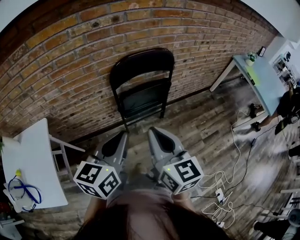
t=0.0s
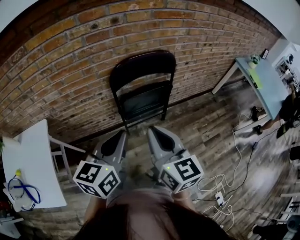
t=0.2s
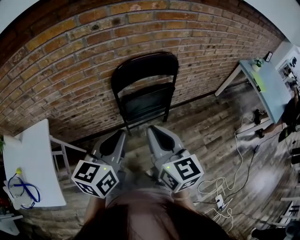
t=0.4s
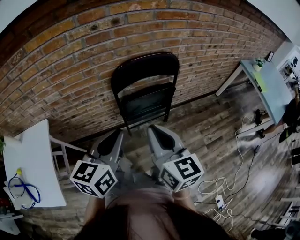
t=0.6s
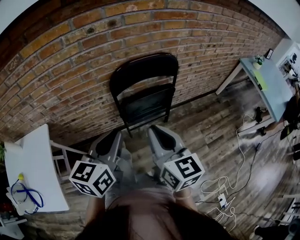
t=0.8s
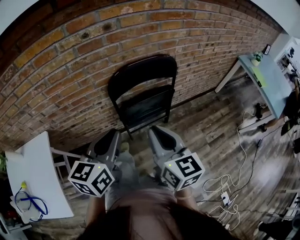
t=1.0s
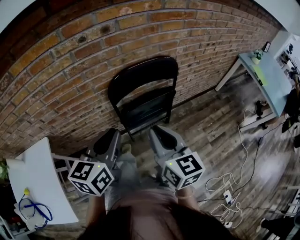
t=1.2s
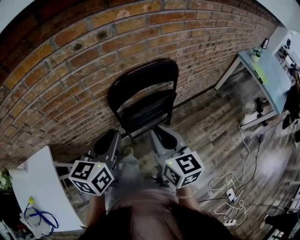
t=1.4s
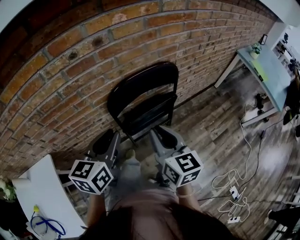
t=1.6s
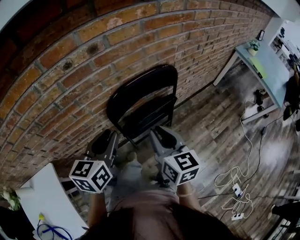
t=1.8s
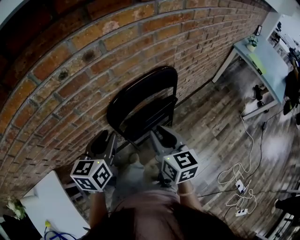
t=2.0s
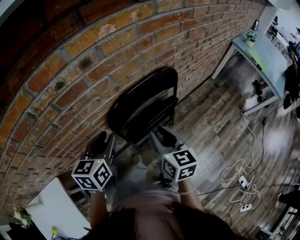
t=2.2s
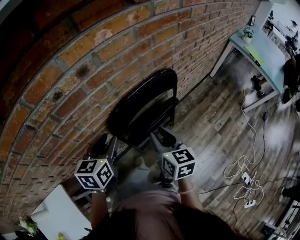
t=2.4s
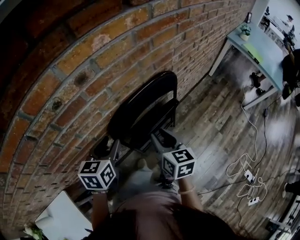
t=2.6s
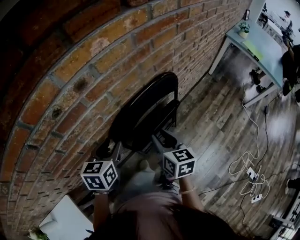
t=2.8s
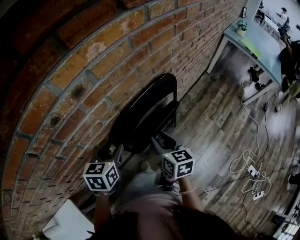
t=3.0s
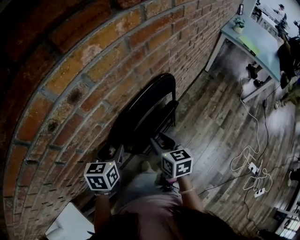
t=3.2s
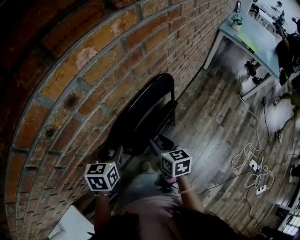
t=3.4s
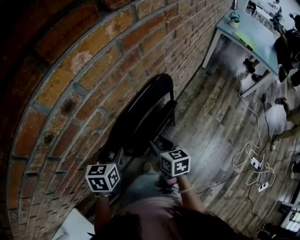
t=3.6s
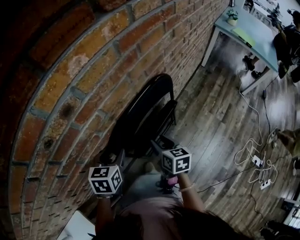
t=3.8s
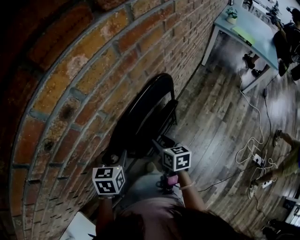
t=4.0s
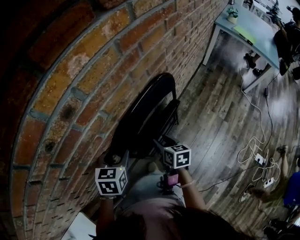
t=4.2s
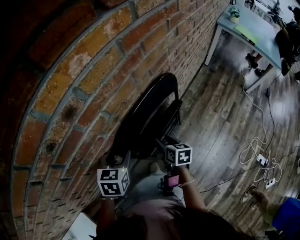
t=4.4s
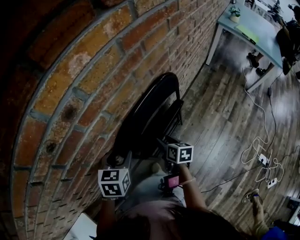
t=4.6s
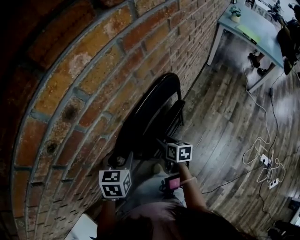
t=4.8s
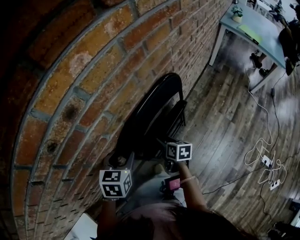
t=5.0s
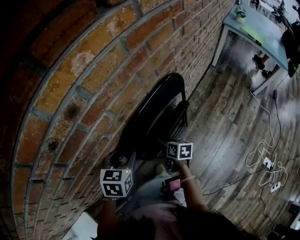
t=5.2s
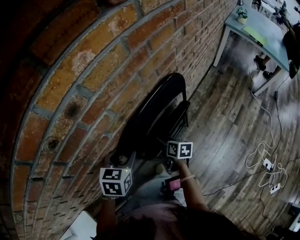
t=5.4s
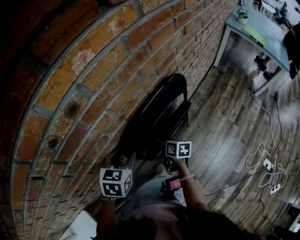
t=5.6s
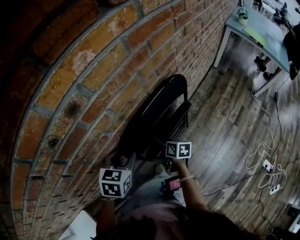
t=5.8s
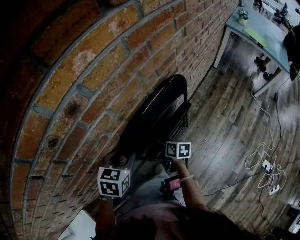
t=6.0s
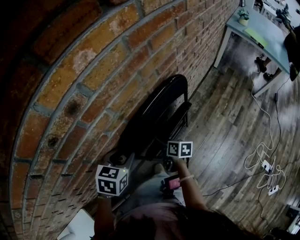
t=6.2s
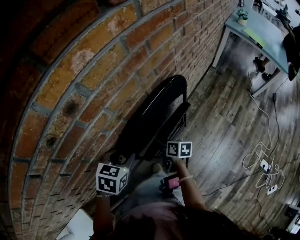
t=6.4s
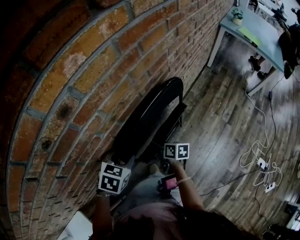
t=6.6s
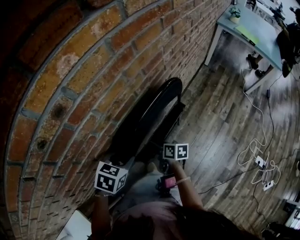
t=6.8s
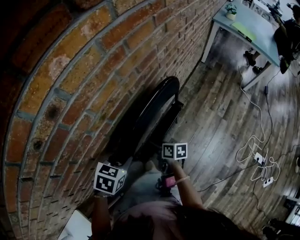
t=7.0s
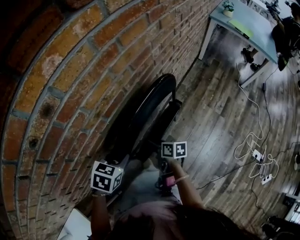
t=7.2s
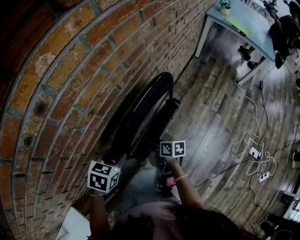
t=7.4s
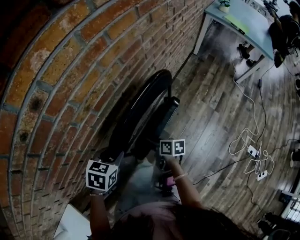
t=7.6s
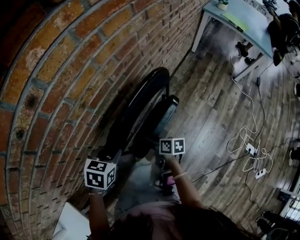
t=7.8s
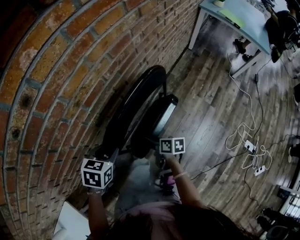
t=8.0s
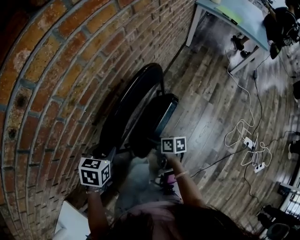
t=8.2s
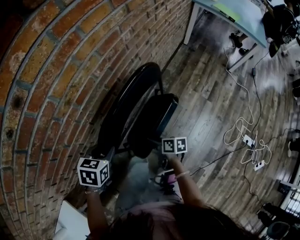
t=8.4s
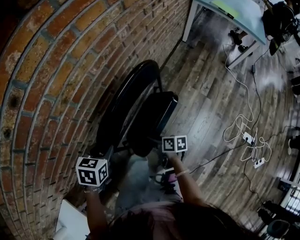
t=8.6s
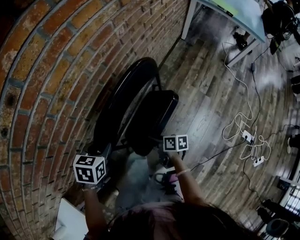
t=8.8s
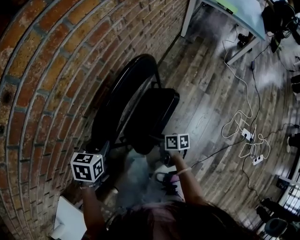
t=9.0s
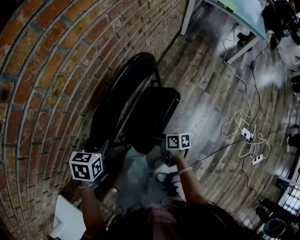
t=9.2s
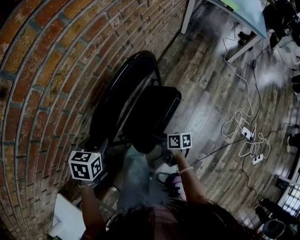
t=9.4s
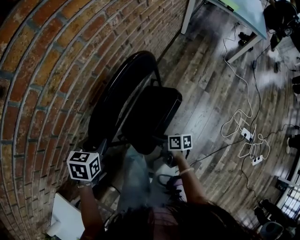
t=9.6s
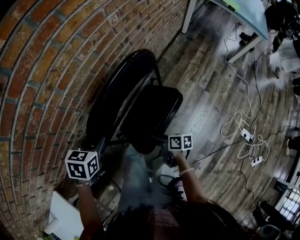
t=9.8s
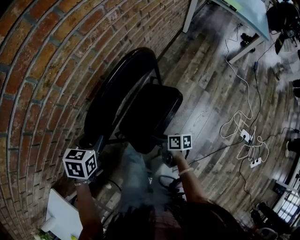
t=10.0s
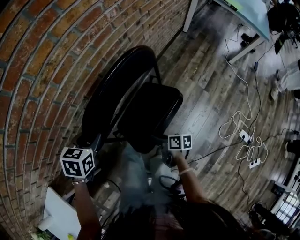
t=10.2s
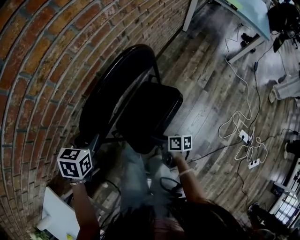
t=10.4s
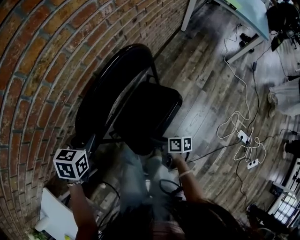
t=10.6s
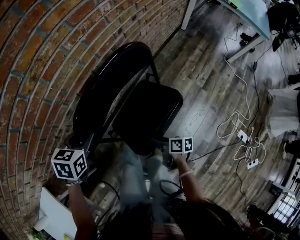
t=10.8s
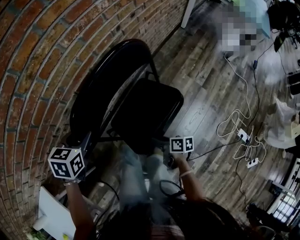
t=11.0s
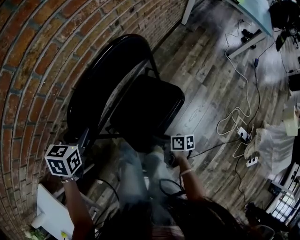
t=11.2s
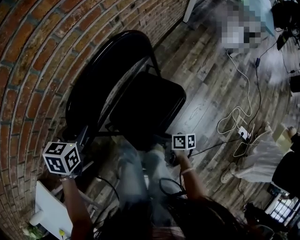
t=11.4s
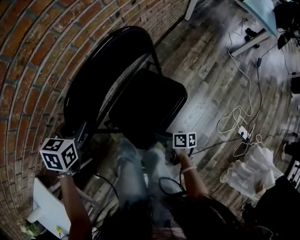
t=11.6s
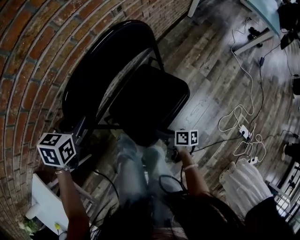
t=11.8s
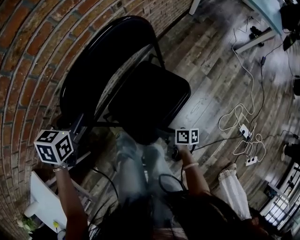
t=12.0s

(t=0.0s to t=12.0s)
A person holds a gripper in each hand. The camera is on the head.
t=0.0s - t=1.6s: The grippers both shift forward by approximately 20 cm.
t=1.6s - t=3.0s: The two grippers go approximately 15 cm forward and downward. The left gripper turns by about 20 degrees, and opens, while the right gripper turns by about 20 degrees, and opens.
t=3.0s - t=4.4s: The right gripper moves downward, approximately 15 cm.
t=4.4s - t=6.0s: The right gripper moves roughly 5 cm.
t=6.0s - t=7.6s: The left gripper moves to the right and backward, roughly 10 cm. The right gripper moves backward and to the right, some 10 cm.
t=7.6s - t=9.0s: The right gripper travels backward and to the right by some 10 cm.
t=9.0s - t=10.4s: The right gripper travels backward by some 5 cm.
t=10.4s - t=12.0s: The right gripper goes roughly 10 cm downward and backward.

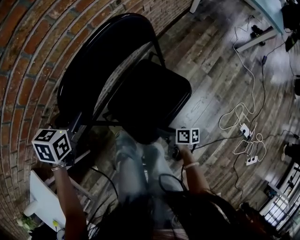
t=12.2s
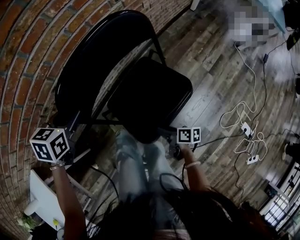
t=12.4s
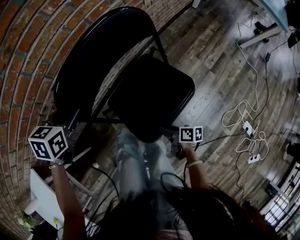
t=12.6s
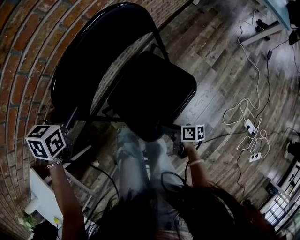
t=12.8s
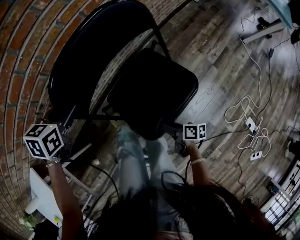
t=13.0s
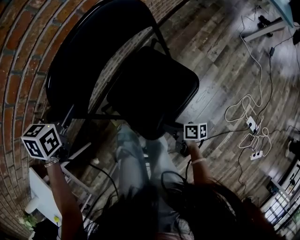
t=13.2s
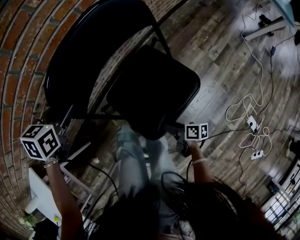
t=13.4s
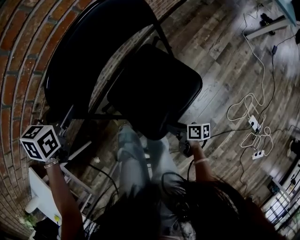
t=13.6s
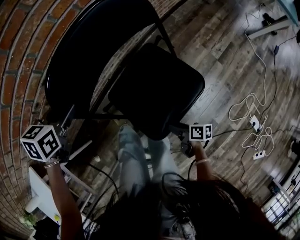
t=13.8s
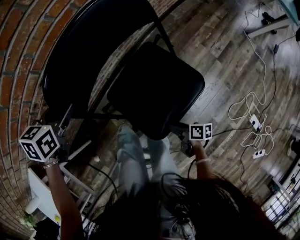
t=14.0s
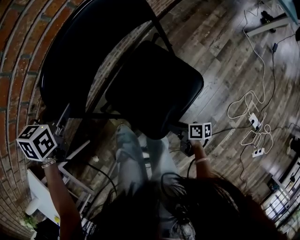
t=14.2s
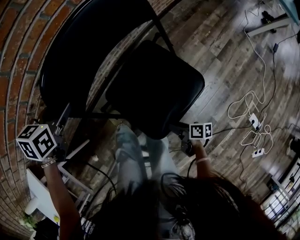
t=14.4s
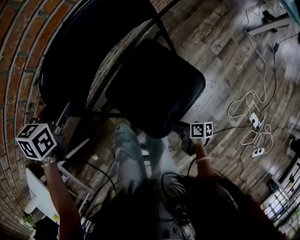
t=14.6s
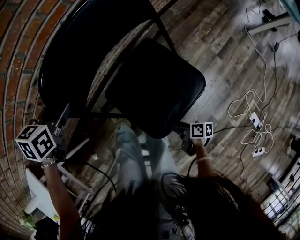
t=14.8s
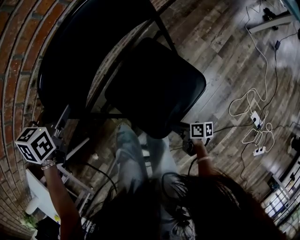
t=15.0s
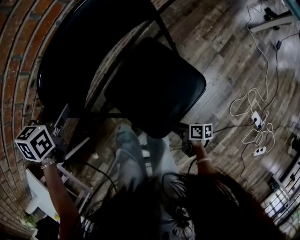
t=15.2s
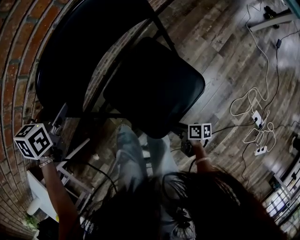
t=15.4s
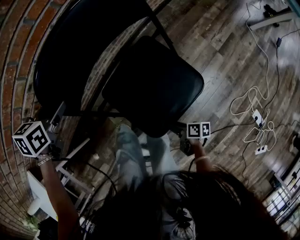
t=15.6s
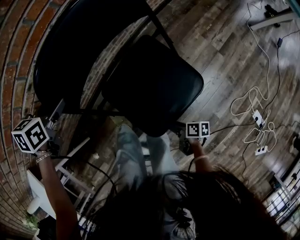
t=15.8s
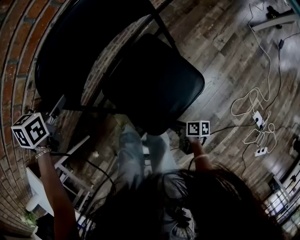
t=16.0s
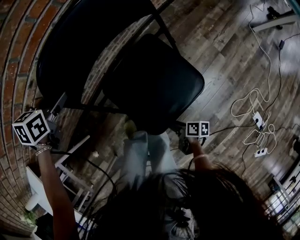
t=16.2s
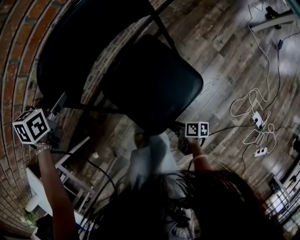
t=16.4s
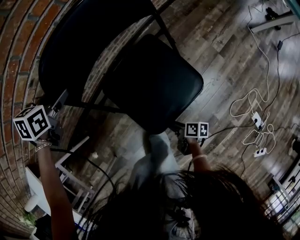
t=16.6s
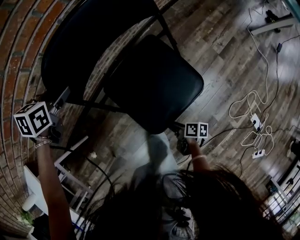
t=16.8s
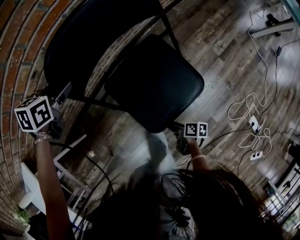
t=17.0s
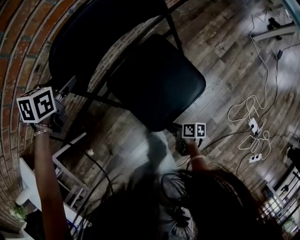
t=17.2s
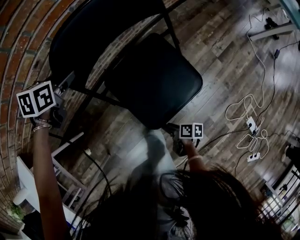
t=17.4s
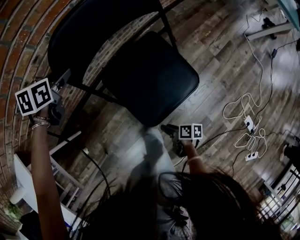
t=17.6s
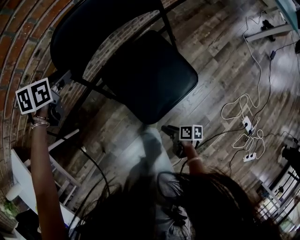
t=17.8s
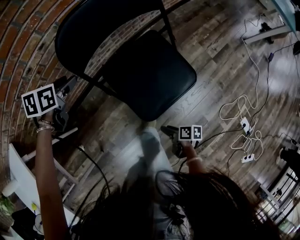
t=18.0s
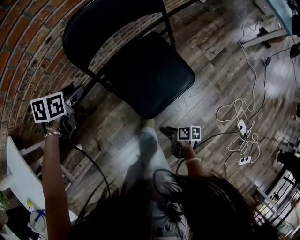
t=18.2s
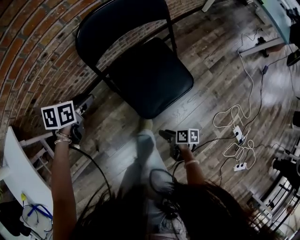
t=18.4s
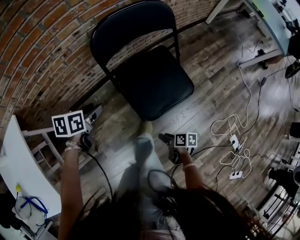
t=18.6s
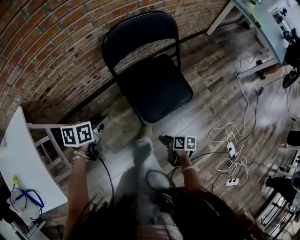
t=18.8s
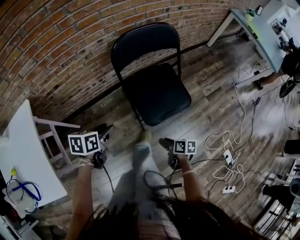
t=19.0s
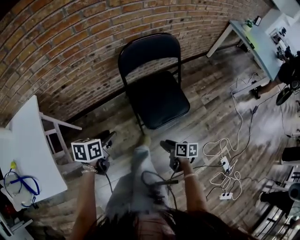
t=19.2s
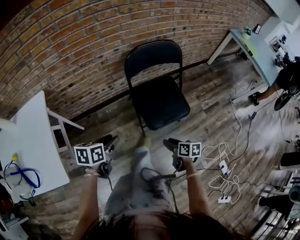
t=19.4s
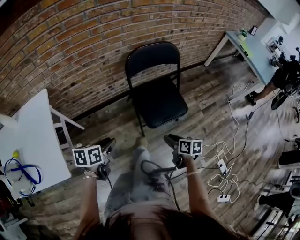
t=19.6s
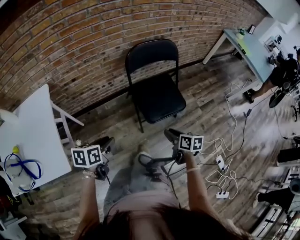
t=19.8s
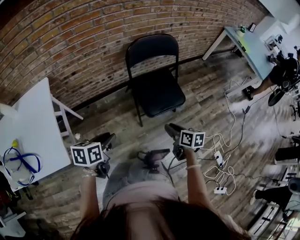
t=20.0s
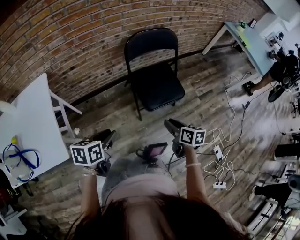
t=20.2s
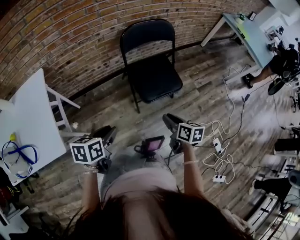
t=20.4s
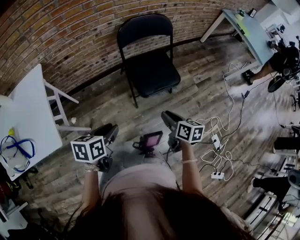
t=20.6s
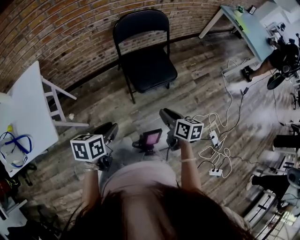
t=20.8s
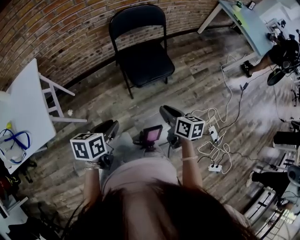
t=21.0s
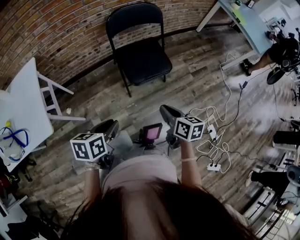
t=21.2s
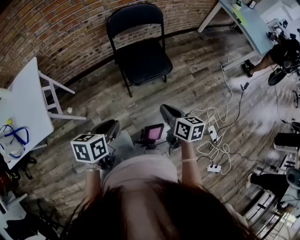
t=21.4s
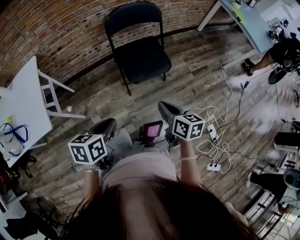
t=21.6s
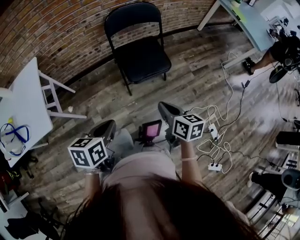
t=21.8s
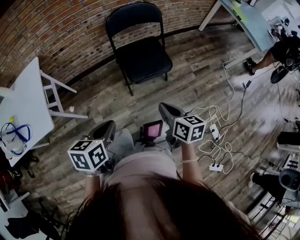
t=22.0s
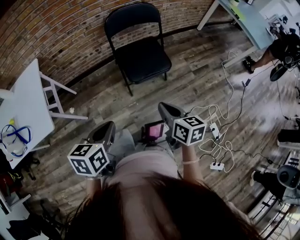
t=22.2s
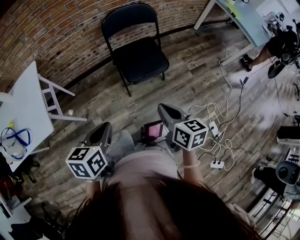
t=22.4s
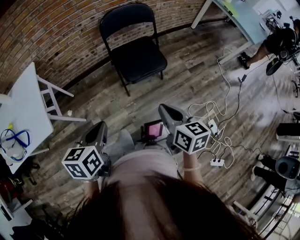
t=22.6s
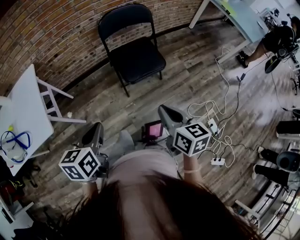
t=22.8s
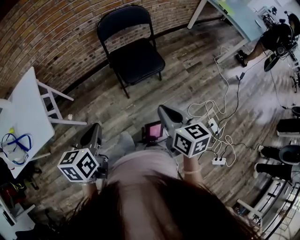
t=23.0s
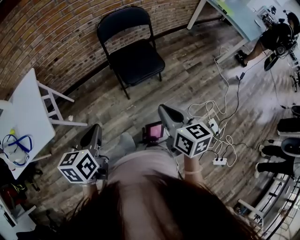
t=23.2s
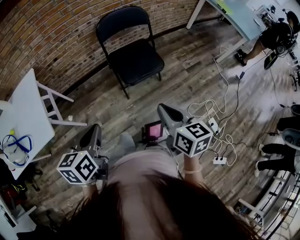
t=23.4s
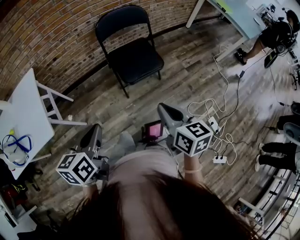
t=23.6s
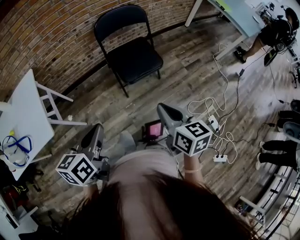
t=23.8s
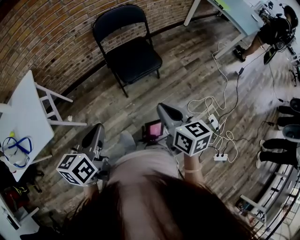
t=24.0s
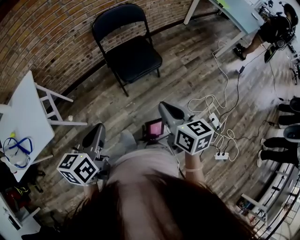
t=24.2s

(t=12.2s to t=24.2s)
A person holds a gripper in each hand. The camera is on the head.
t=12.2s - t=13.8s: The right gripper heads downward, covering some 5 cm.
t=13.8s - t=15.2s: The right gripper is displaced downward by approximately 5 cm.
t=15.2s - t=16.6s: The grippers move only a little.
t=16.6s - t=18.2s: The right gripper is displaced backward by about 10 cm. The left gripper heads backward and to the left, covering about 15 cm.
t=18.2s - t=19.8s: The left gripper travels backward and upward by some 40 cm, changes its angle by about 20 degrees, and closes up; the right gripper heads upward, covering roughly 30 cm, and rotates approximately 40 degrees.
t=19.8s - t=21.2s: The left gripper is displaced to the right and backward by some 20 cm. The right gripper goes roughly 15 cm backward, upward and to the right, and closes.
t=21.2s - t=22.6s: Both grippers move upward, some 10 cm.
t=22.6s - t=24.2s: The grippers move only a little.
